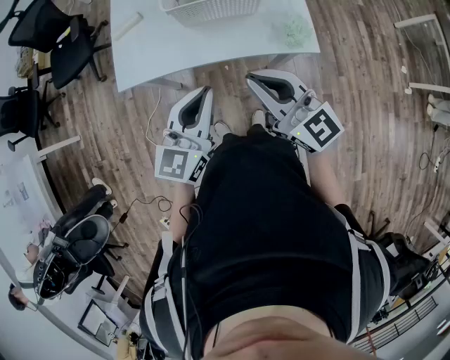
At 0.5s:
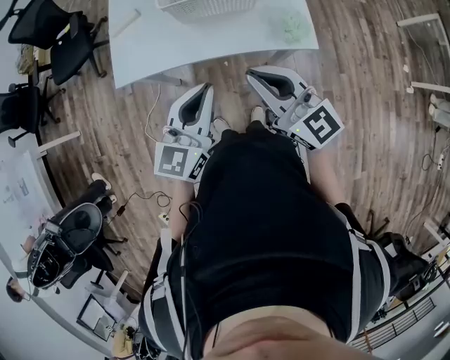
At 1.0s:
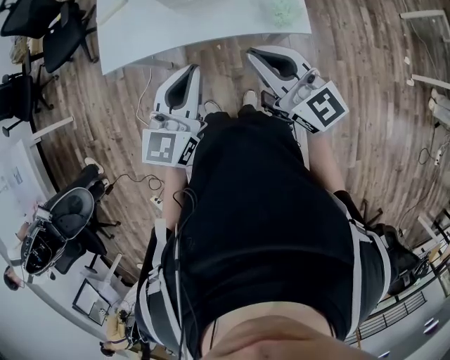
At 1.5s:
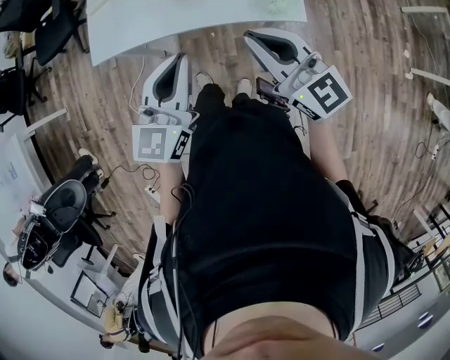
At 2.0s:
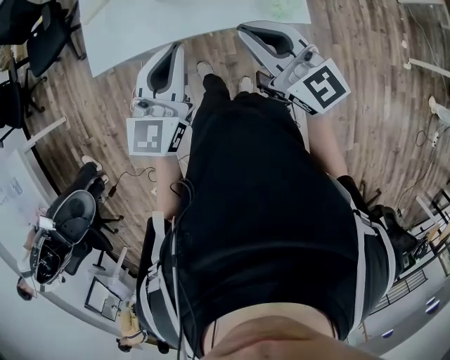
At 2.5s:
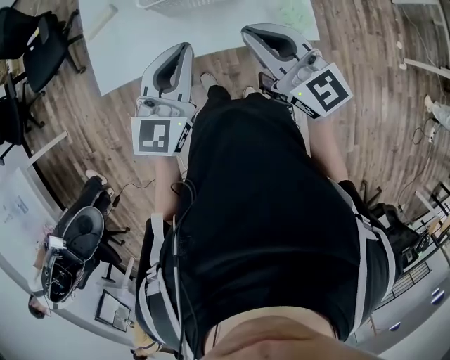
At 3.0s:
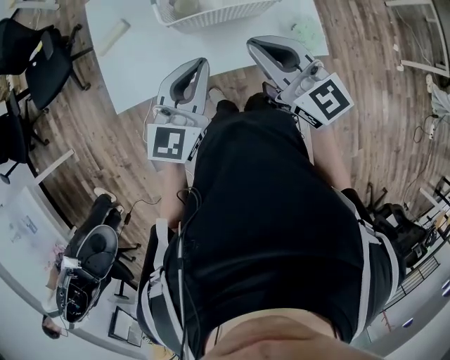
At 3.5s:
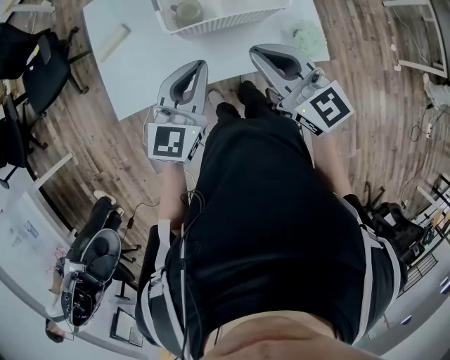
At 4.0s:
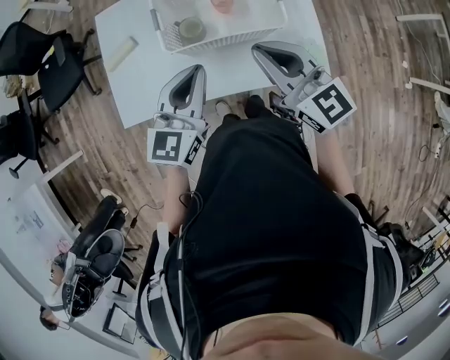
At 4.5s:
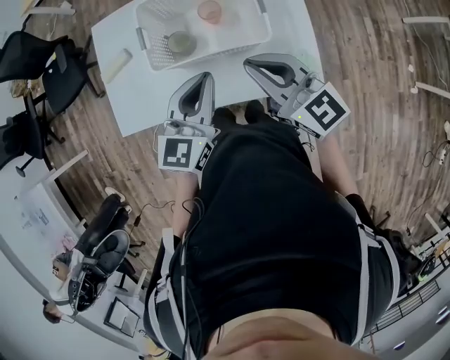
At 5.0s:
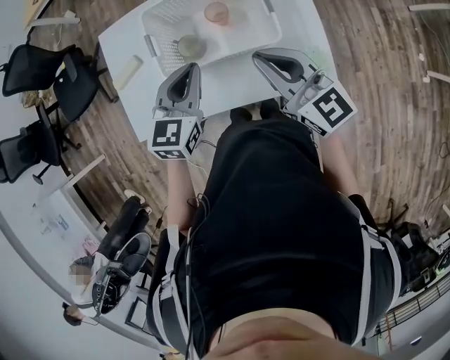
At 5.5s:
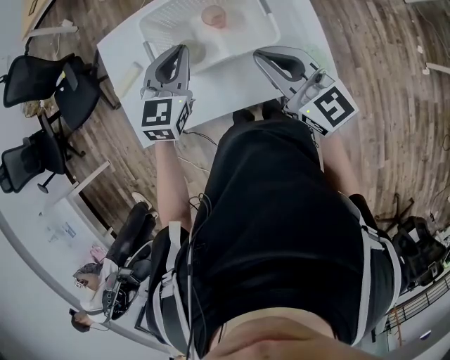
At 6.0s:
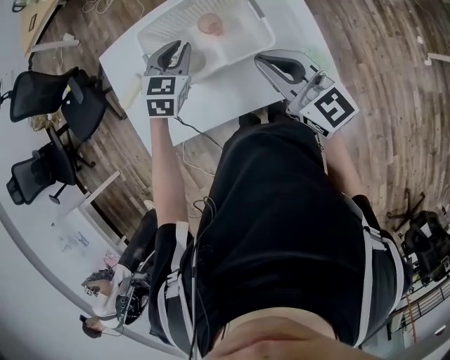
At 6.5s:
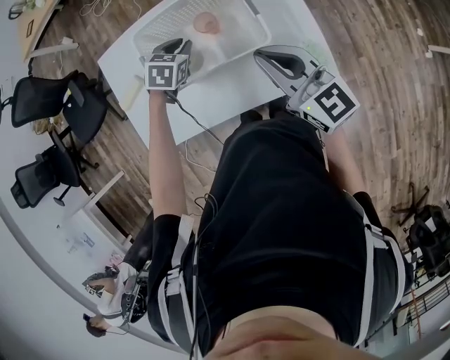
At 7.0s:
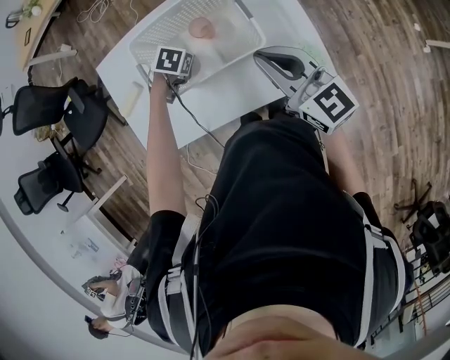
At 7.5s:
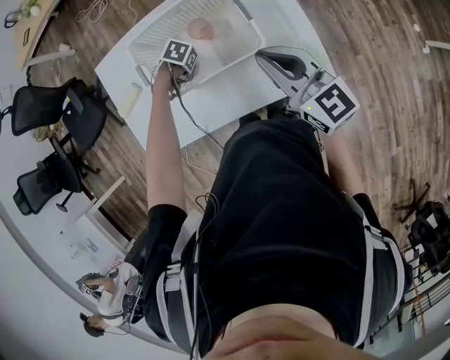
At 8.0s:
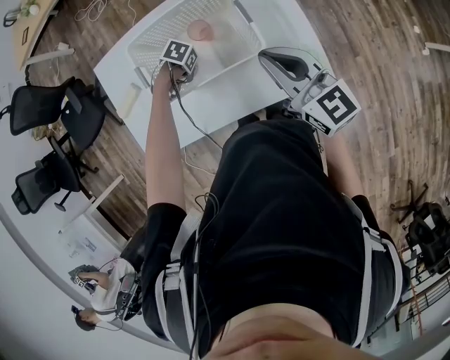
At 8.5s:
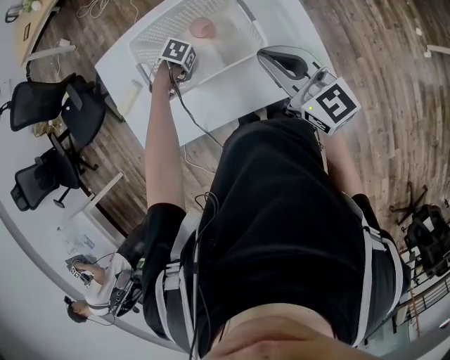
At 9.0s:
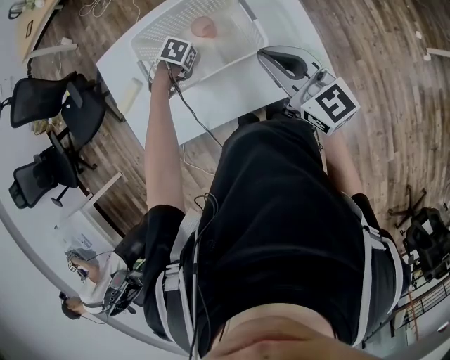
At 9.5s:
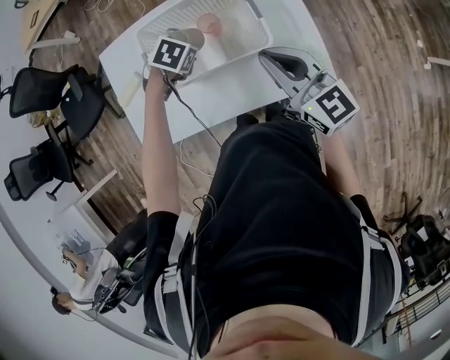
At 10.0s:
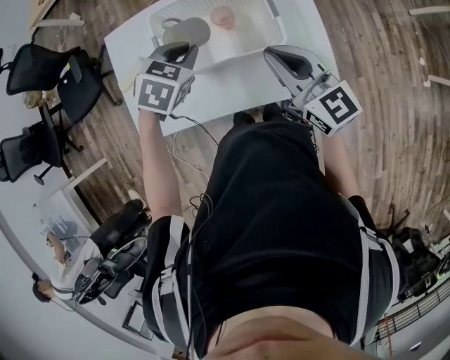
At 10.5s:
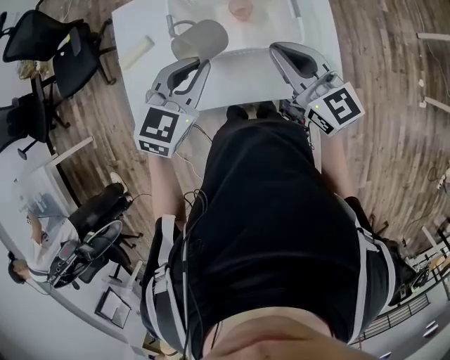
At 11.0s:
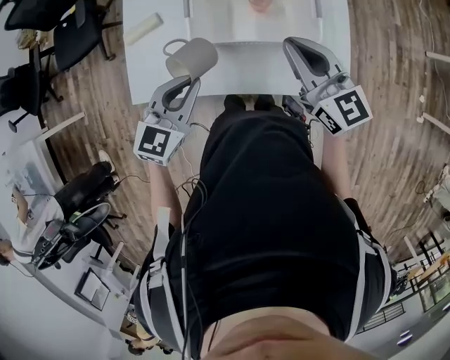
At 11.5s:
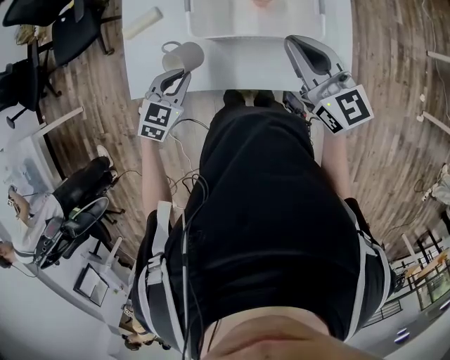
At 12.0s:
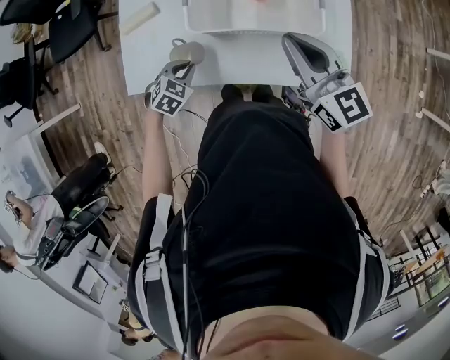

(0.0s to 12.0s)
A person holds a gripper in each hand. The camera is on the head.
0.0s - 2.0s: The left gripper is displaced forward by about 5 cm. Meanwhile the right gripper travels to the right and forward by about 10 cm.
2.0s - 4.0s: The grippers both shift forward by about 20 cm.
4.0s - 6.0s: The right gripper moves to the right and forward, roughly 10 cm; the left gripper goes some 20 cm forward and downward, and turns by roughly 40 degrees.
6.0s - 8.0s: The right gripper ends up approximately 5 cm from where it was, while the left gripper moves downward, roughly 20 cm, and angles its fingers downward, by approximately 40 degrees.
8.0s - 10.0s: The left gripper travels upward by about 25 cm, and turns by roughly 40 degrees. The right gripper shifts by approximately 5 cm.
10.0s - 12.0s: The left gripper is displaced downward, to the left and backward by some 30 cm. Meanwhile the right gripper moves to the left, some 5 cm.

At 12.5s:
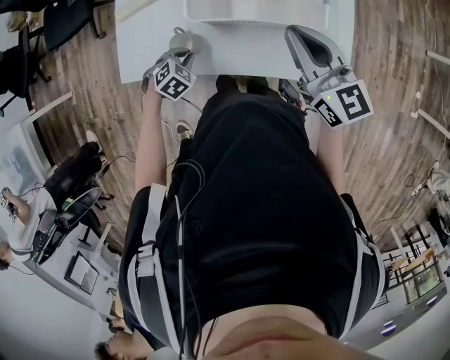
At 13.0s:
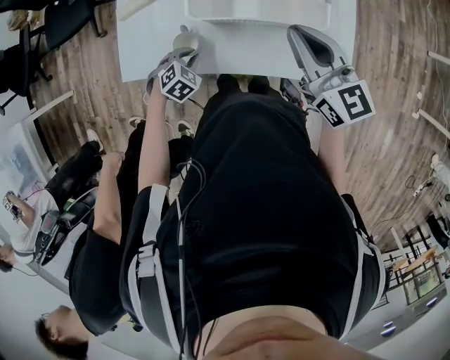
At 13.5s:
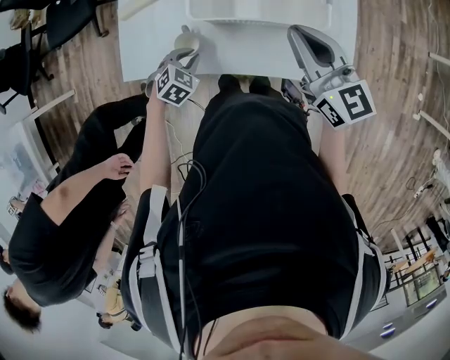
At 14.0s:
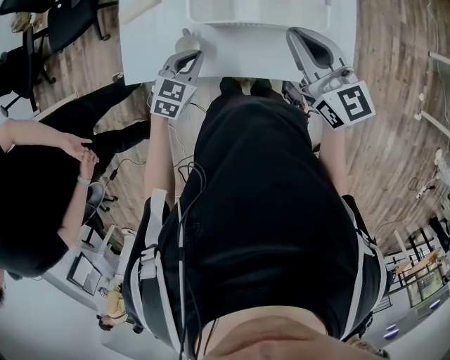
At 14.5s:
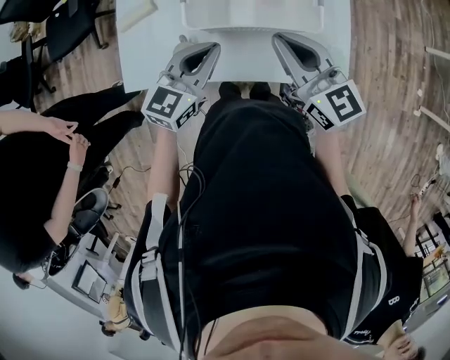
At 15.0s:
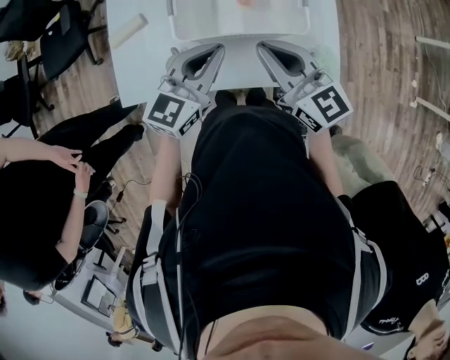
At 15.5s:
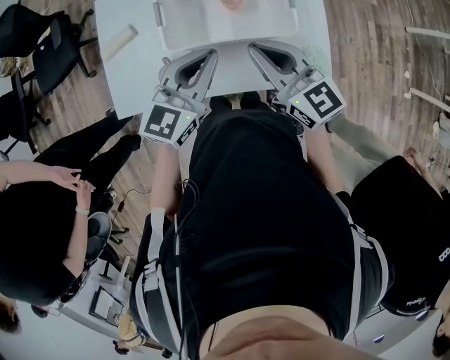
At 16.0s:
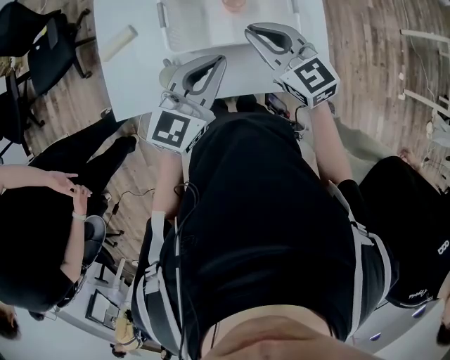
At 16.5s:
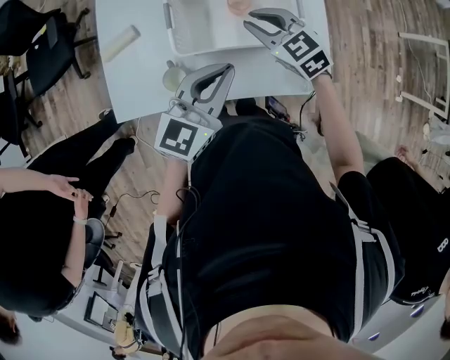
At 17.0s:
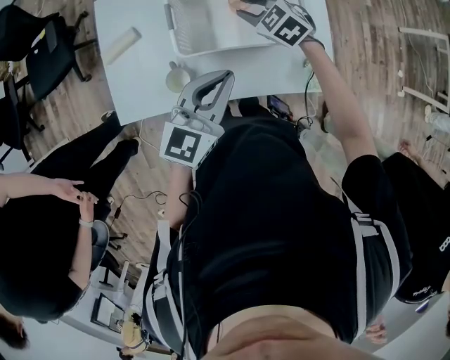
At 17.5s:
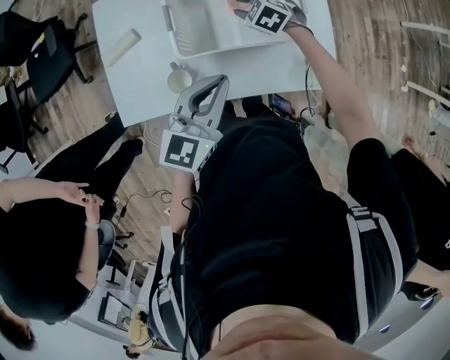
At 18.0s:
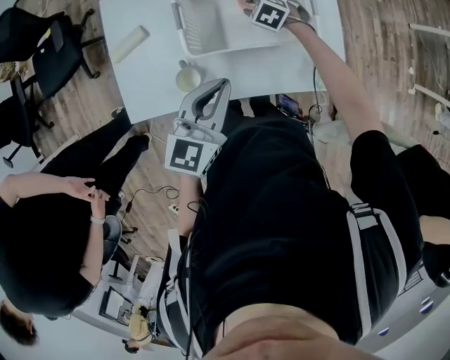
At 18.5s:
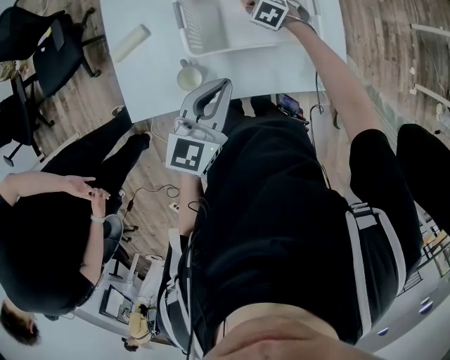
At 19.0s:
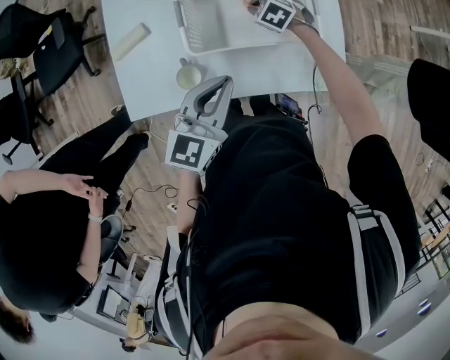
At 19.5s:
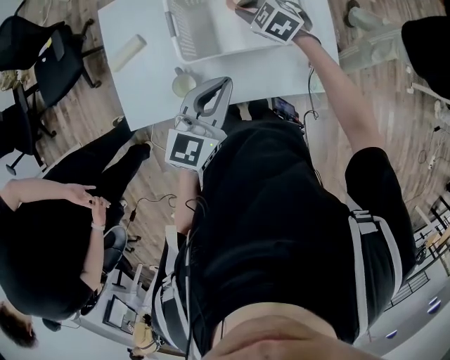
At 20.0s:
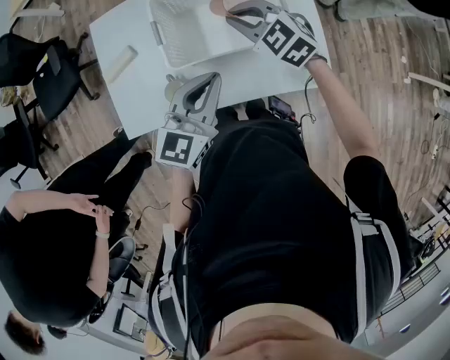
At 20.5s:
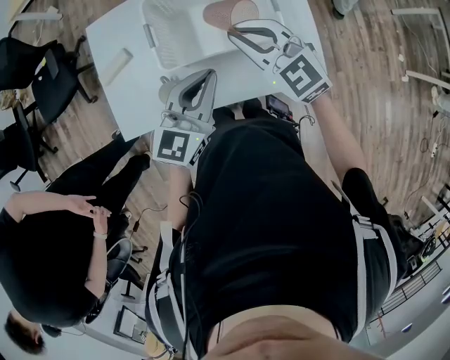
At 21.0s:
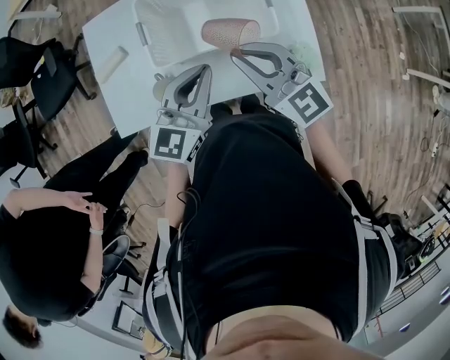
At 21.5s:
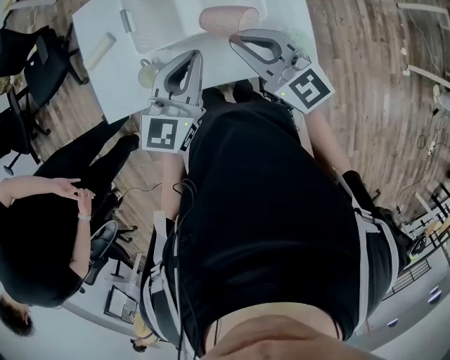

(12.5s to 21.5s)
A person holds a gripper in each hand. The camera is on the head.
12.5s - 14.5s: The left gripper shifts about 25 cm upward and to the right, and tips its fingers upward by approximately 50 degrees.
14.5s - 17.0s: The right gripper is displaced forward and downward by roughly 20 cm, tips its fingers downward by approximately 40 degrees, and opens up, while the left gripper changes place by about 5 cm.
17.0s - 19.5s: The right gripper reaches approximately 15 cm downward, then returns.
19.5s - 21.5s: The right gripper moves backward, upward and to the right, some 25 cm, and points its fingers roughly 40 degrees further upward. Meanwhile the left gripper heads to the right, covering about 10 cm.

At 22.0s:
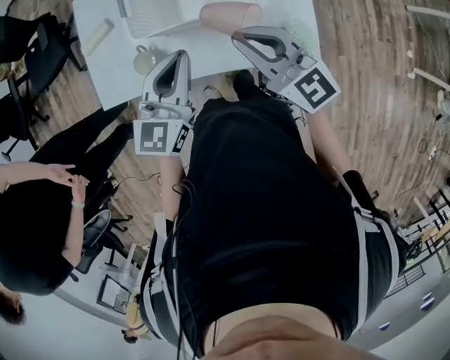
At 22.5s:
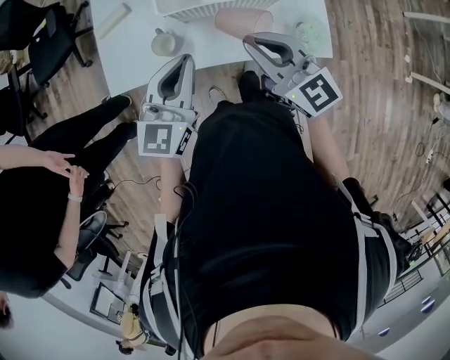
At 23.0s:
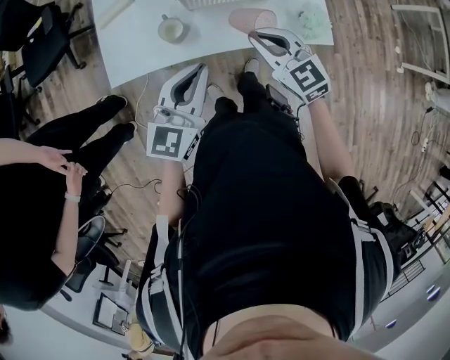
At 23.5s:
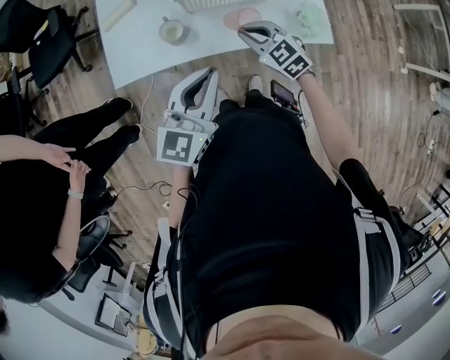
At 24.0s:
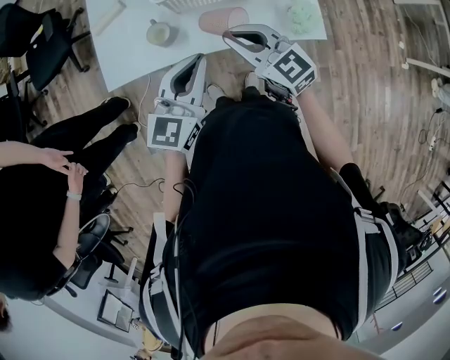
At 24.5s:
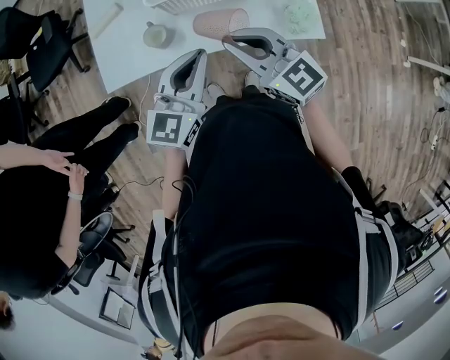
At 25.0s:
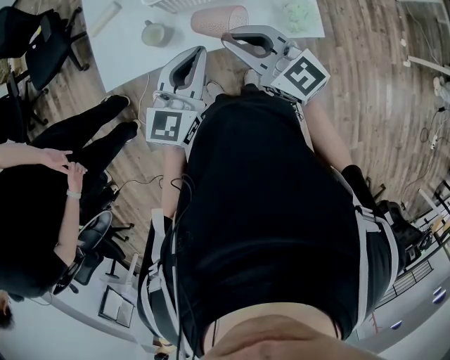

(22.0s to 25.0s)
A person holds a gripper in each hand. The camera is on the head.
22.0s - 23.5s: The right gripper heads downward, to the left and backward, covering some 20 cm, and swivels some 30 degrees. Meanwhile the left gripper is displaced backward and to the left by about 20 cm.
23.5s - 25.0s: The left gripper moves to the right, roughly 5 cm; the right gripper heads upward, covering about 15 cm, and swivels some 30 degrees.

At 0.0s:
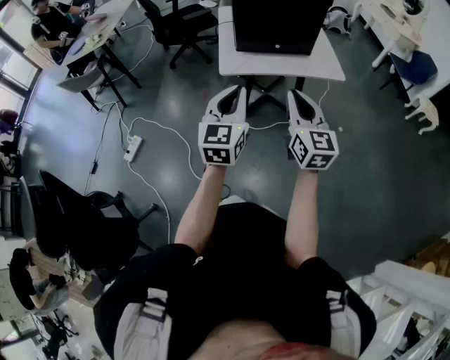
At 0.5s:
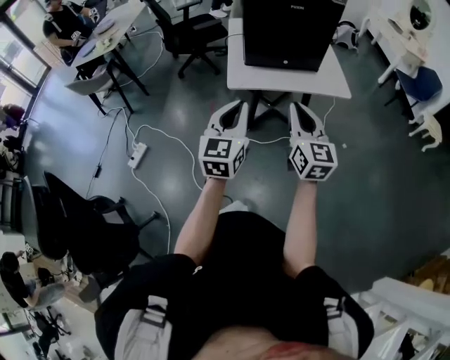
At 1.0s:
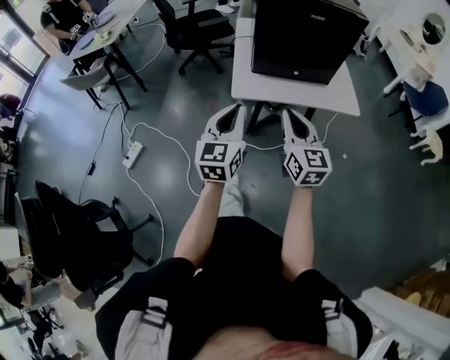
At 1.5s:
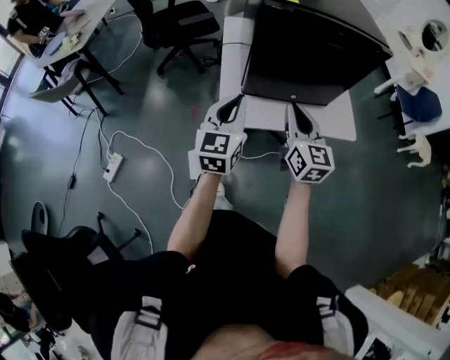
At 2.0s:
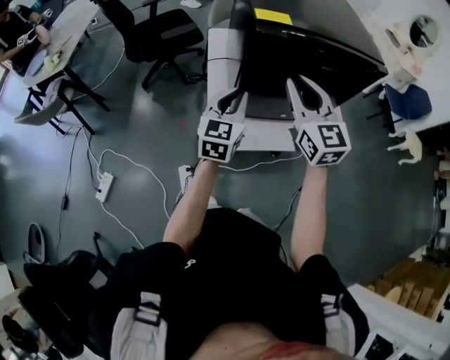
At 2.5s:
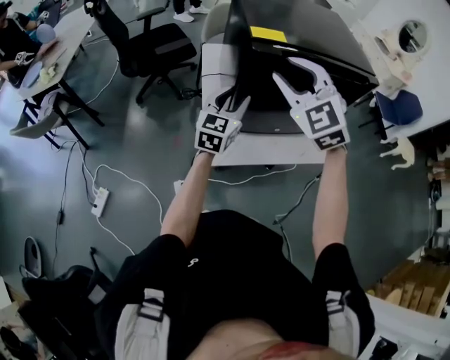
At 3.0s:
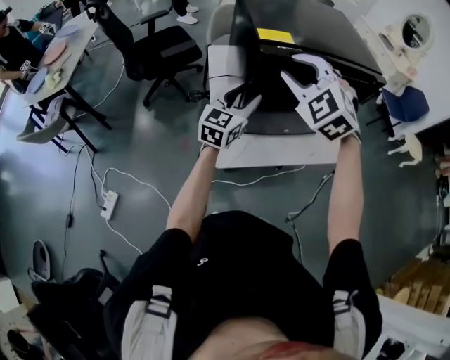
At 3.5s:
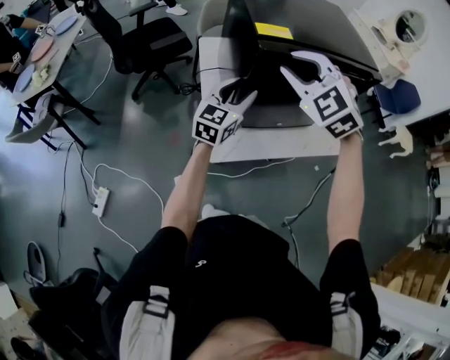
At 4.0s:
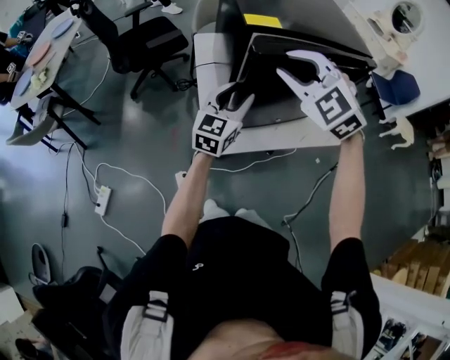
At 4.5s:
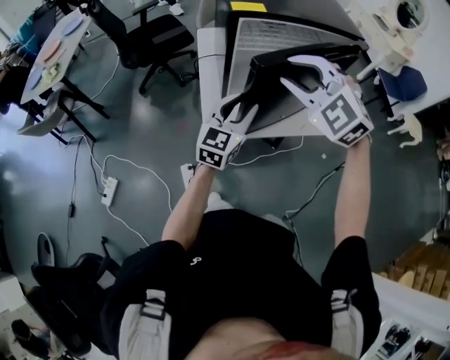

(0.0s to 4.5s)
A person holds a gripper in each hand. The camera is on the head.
0.0s - 2.0s: Both grippers are carried forward, about 40 cm.
2.0s - 4.5s: The left gripper moves backward and to the right, roughly 10 cm, and opens up. Meanwhile the right gripper travels backward by some 5 cm, and rotates around the line of its fingers by about 40 degrees, counterclockwise from behind.
